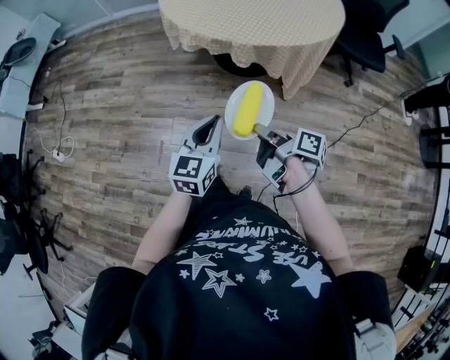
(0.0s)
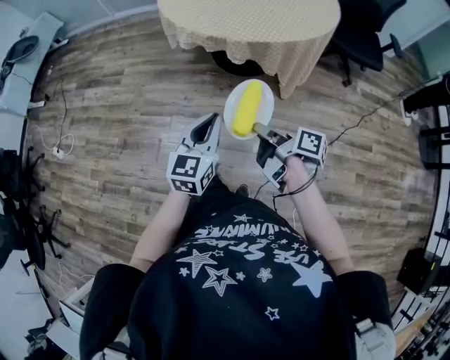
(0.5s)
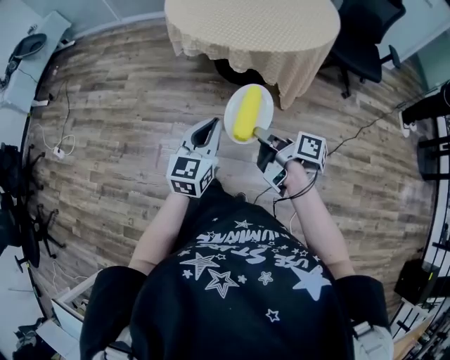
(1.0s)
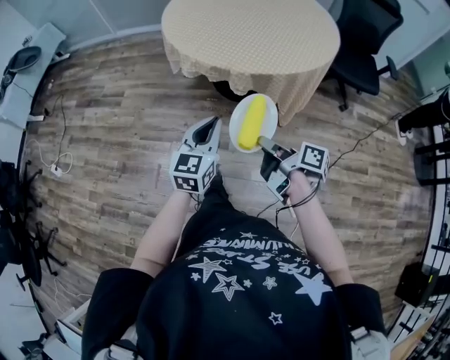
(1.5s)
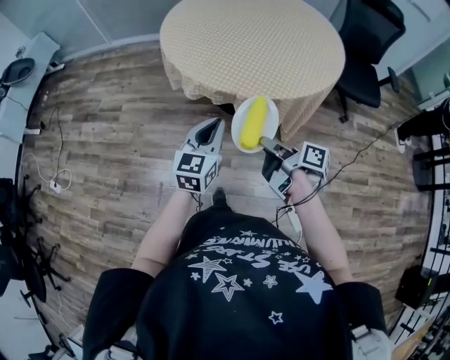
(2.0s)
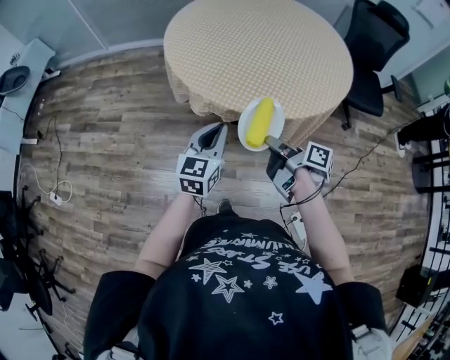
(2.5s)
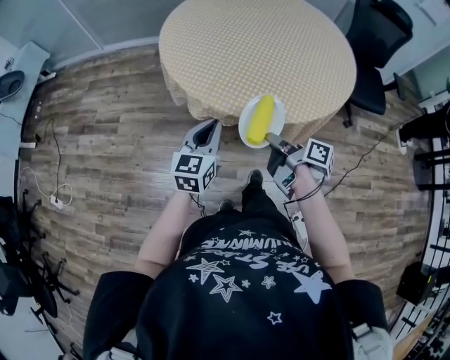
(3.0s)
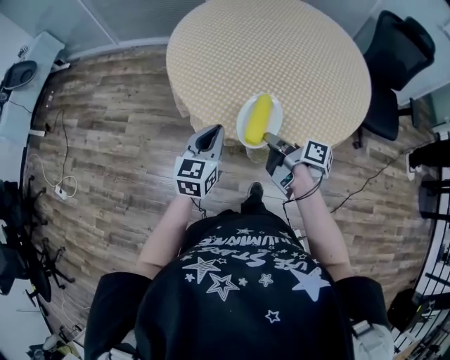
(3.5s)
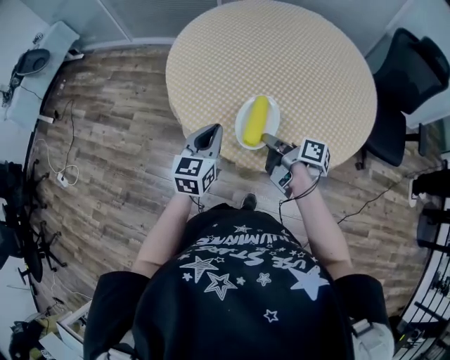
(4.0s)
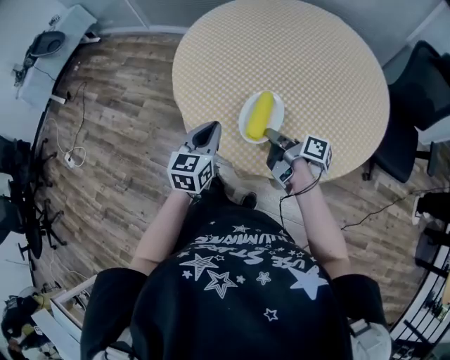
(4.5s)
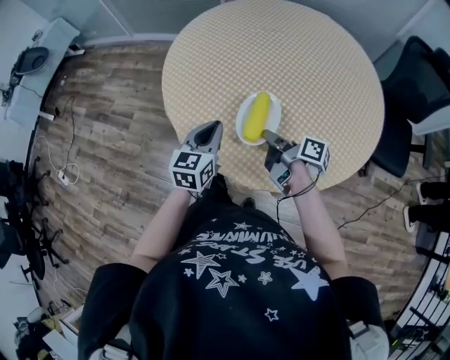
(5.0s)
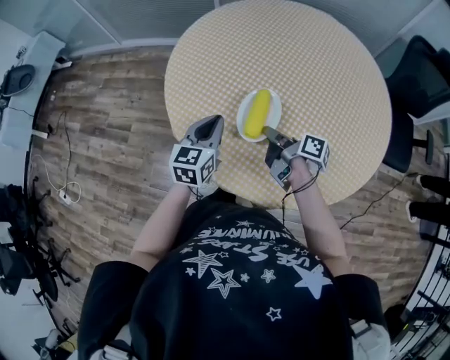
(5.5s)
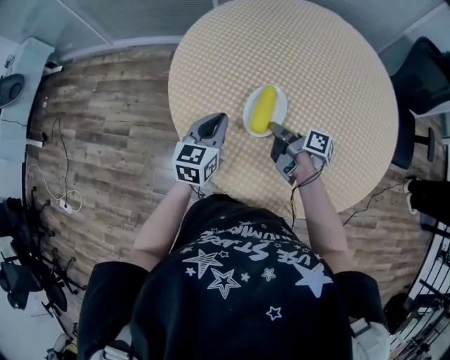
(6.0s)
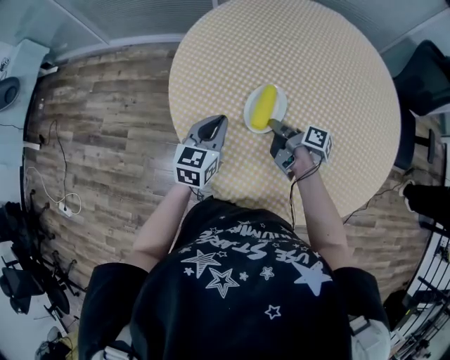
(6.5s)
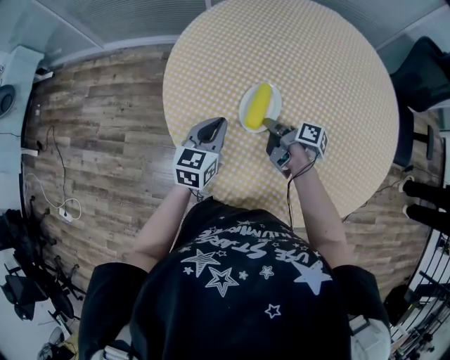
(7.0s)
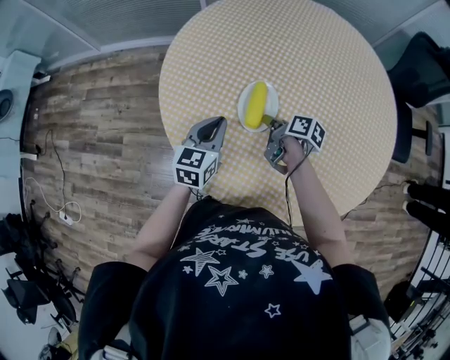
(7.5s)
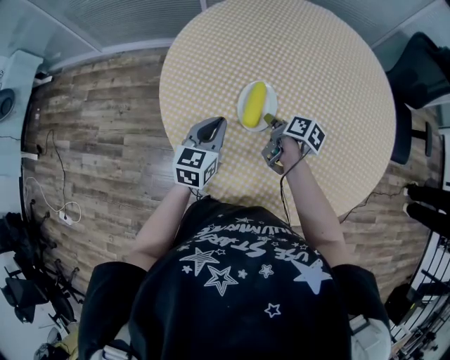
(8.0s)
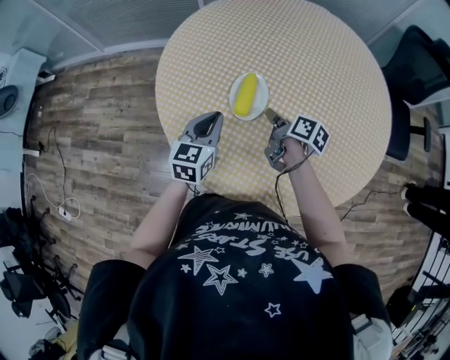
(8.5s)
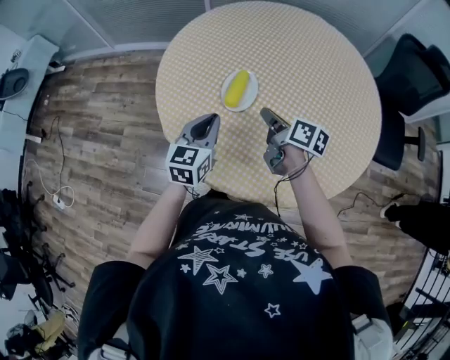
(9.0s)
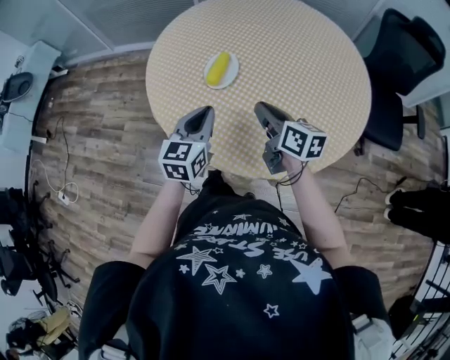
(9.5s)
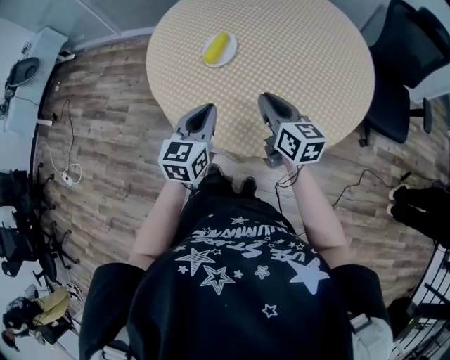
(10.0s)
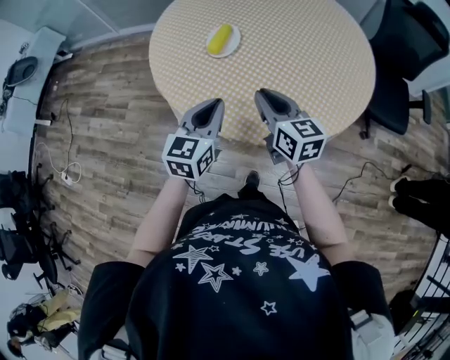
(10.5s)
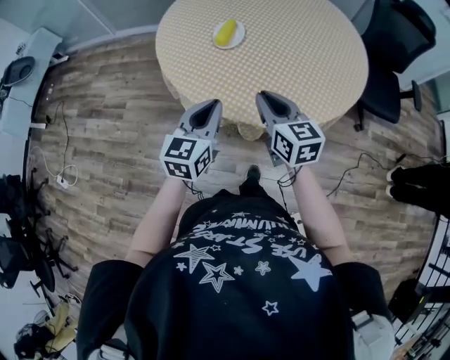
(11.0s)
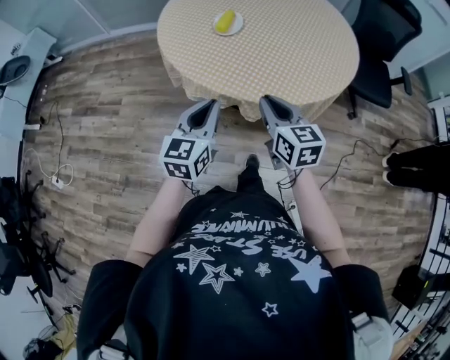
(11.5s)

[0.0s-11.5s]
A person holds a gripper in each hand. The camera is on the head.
0.0s to 2.0s: The left gripper changes place by roughly 20 cm.
2.0s to 4.0s: The left gripper changes place by roughly 25 cm.
4.0s to 6.0s: The left gripper shifts by approximately 25 cm.
7.5s to 9.5s: The left gripper shifts by roughly 20 cm.
9.5s to 11.5s: The left gripper changes place by approximately 25 cm.

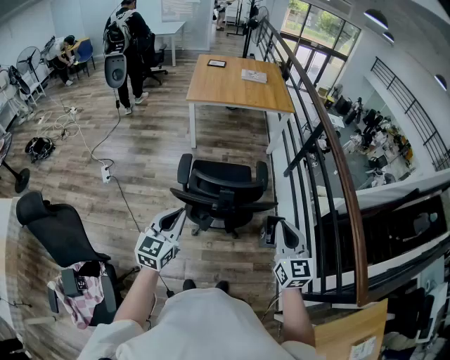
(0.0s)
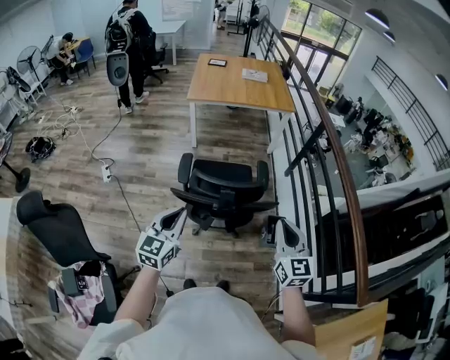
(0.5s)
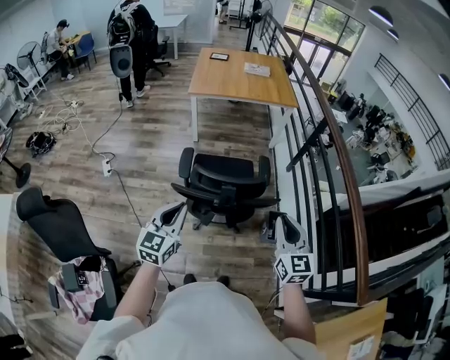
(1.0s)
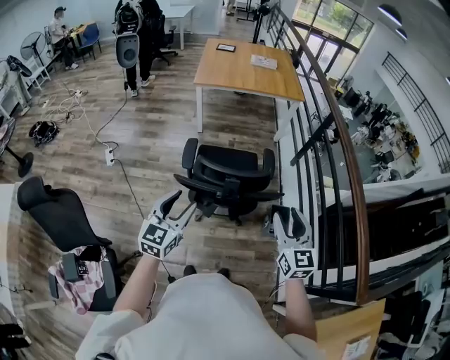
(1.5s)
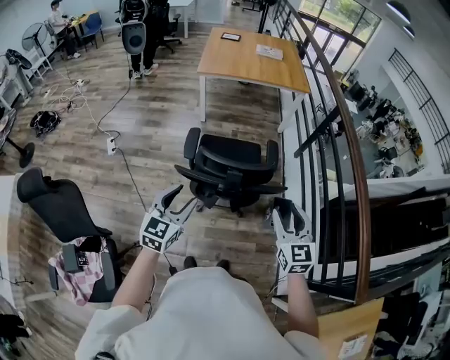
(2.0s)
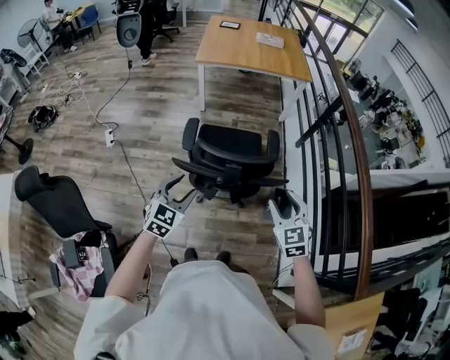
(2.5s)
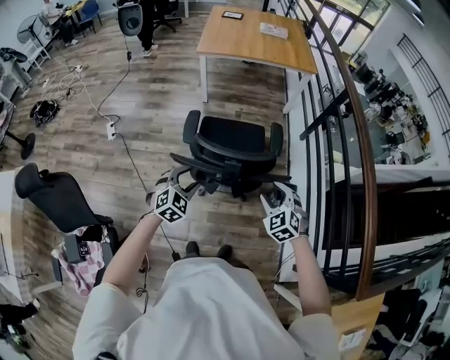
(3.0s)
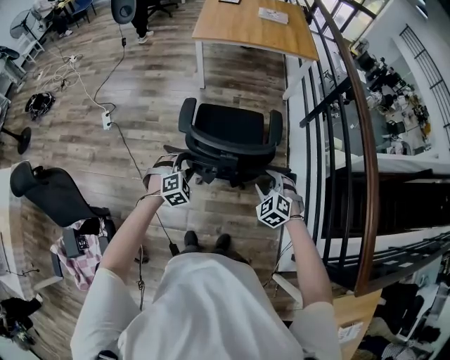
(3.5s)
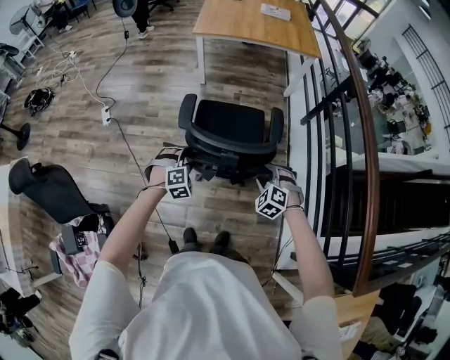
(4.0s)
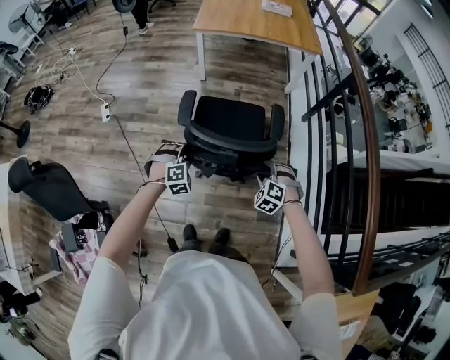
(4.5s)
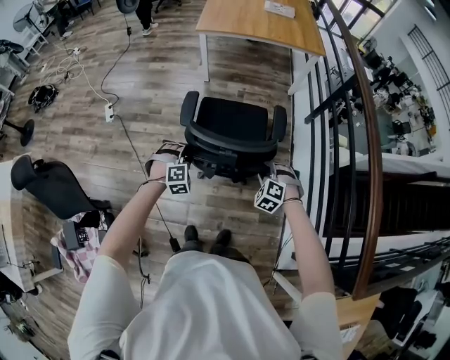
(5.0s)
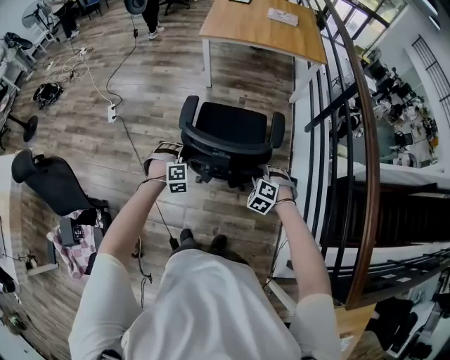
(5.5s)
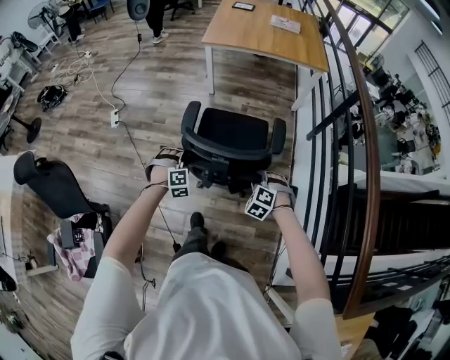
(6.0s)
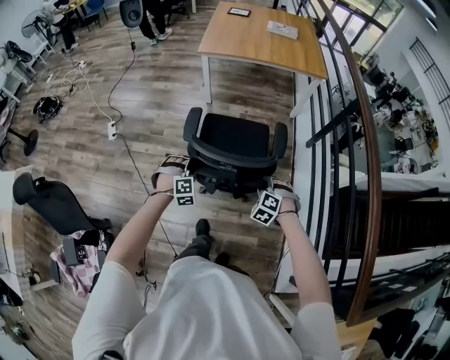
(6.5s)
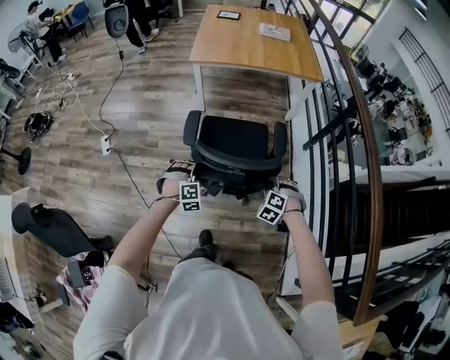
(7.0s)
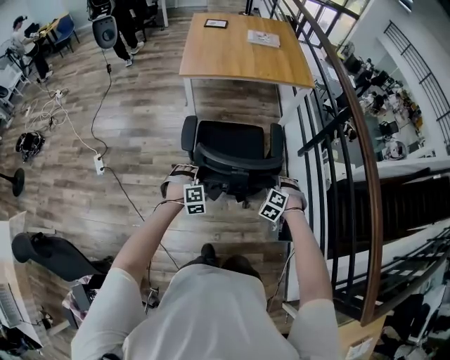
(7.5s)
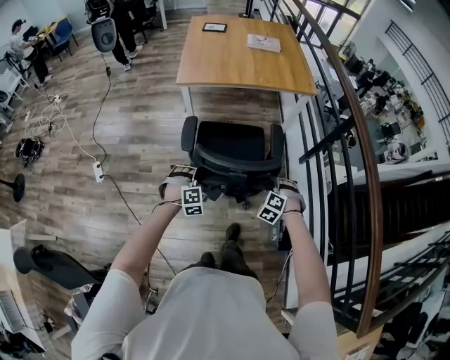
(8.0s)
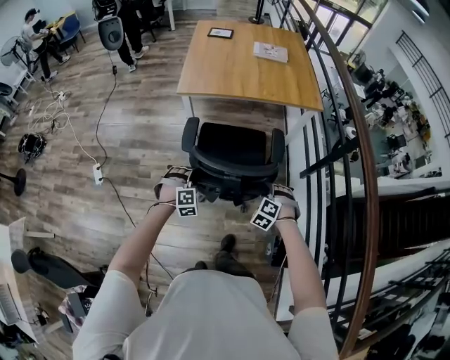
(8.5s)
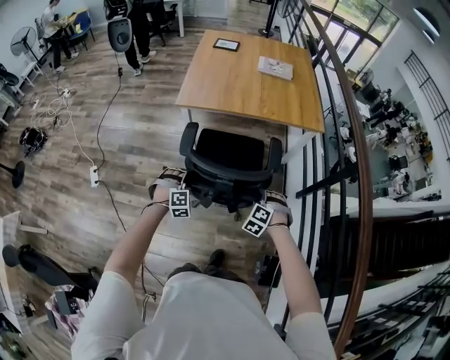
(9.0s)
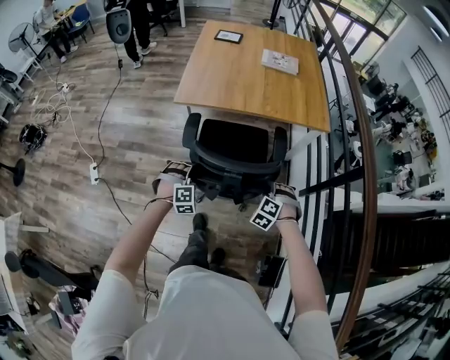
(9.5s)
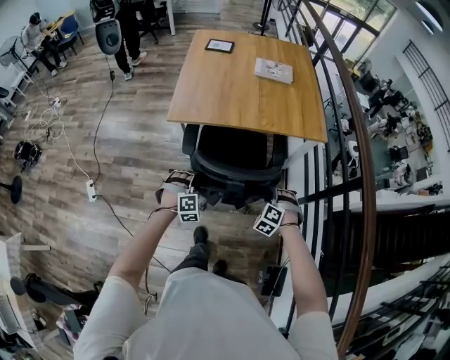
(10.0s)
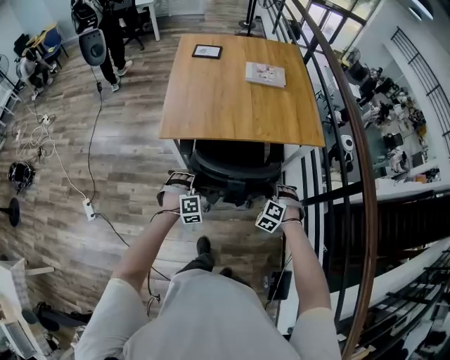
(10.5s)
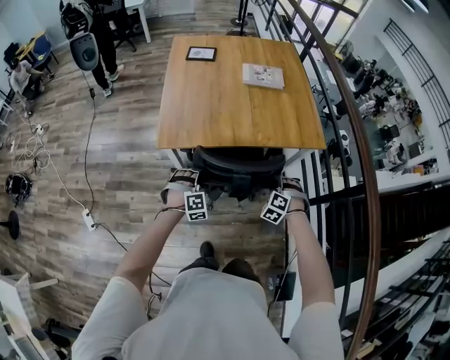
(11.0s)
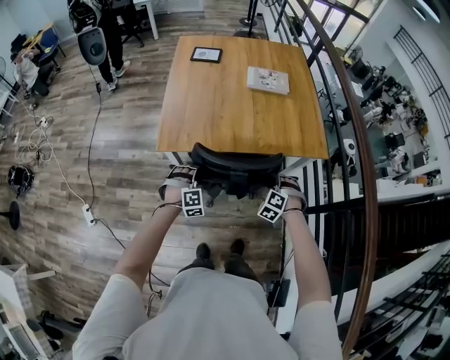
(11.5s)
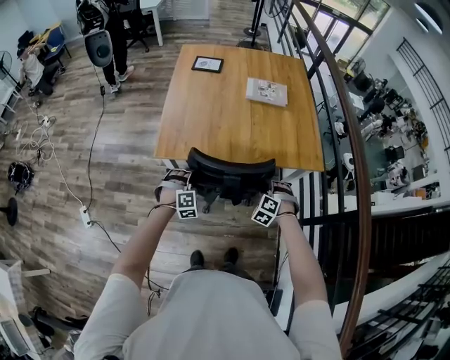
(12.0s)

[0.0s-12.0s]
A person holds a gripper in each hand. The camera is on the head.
0.0s to 2.0s: The right gripper changes place by roughly 5 cm, and opens up. The left gripper opens up.
2.0s to 4.0s: The two grippers go some 25 cm downward and forward. The left gripper rotates around the line of its fingers by approximately 60 degrees, clockwise from behind. Meanwhile the right gripper angles its fingers downward, by about 40 degrees.
4.0s to 6.0s: There are only small adjustments of the grippers.
6.0s to 8.0s: Both grippers move forward, approximately 30 cm.
8.0s to 10.0s: The grippers both shift forward by about 30 cm.
10.0s to 12.0s: The grippers both shift forward by about 25 cm.

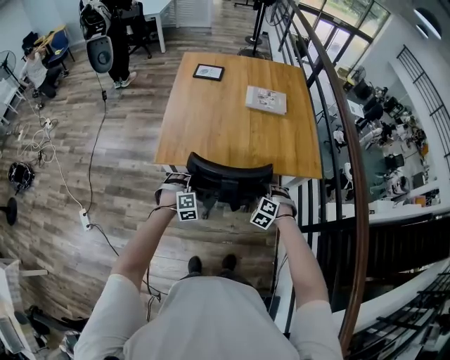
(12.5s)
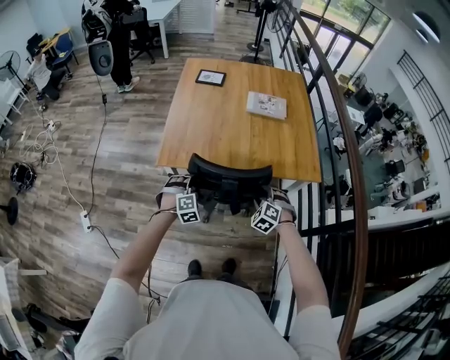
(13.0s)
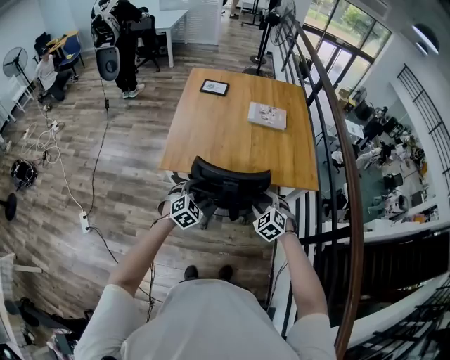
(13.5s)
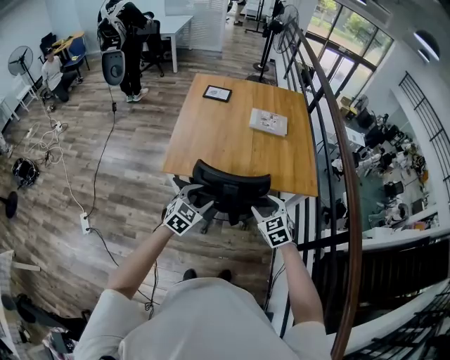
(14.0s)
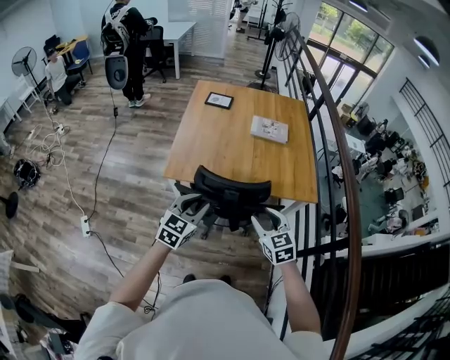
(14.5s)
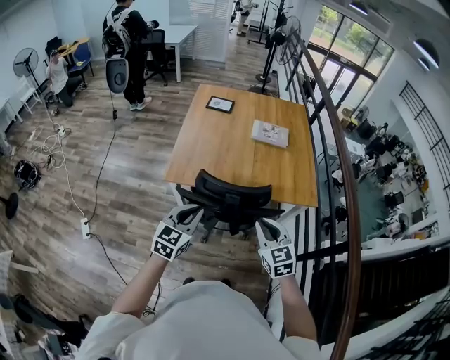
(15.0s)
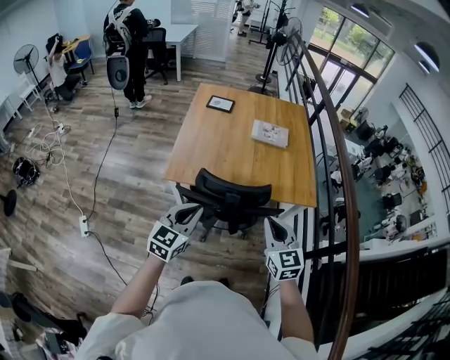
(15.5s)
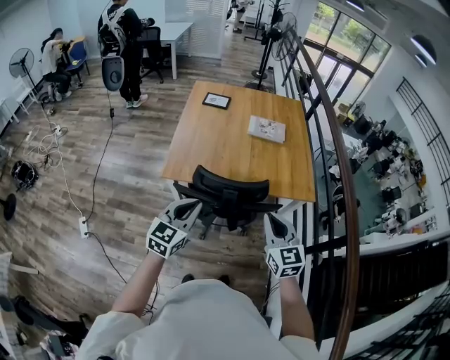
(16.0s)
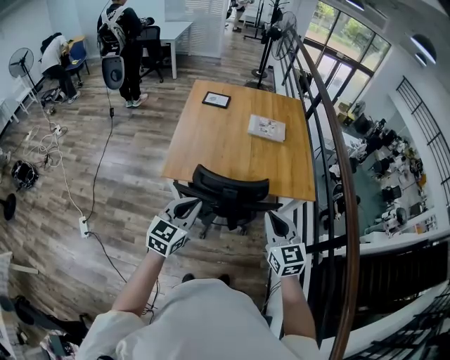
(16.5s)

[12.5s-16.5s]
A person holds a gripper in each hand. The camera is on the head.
12.5s to 14.5s: Both grippers move upward and backward, approximately 25 cm. The left gripper rolls counterclockwise, seen from behind, by about 60 degrees, while the right gripper rotates roughly 60 degrees.
14.5s to 16.5s: The left gripper goes some 5 cm upward, and closes up. Meanwhile the right gripper is displaced upward by some 10 cm, and closes its fingers.
